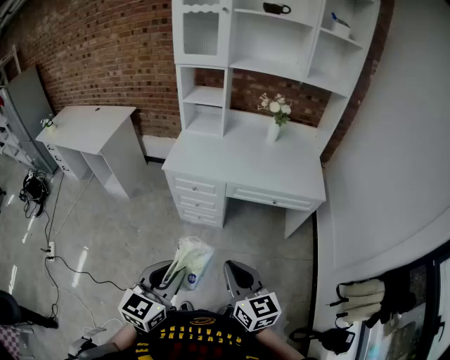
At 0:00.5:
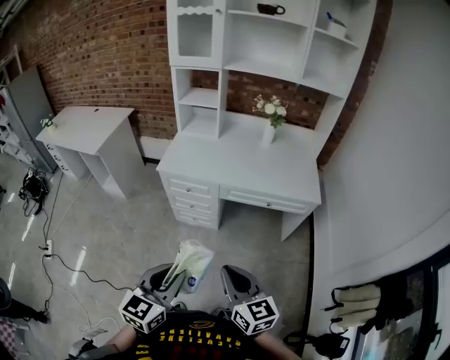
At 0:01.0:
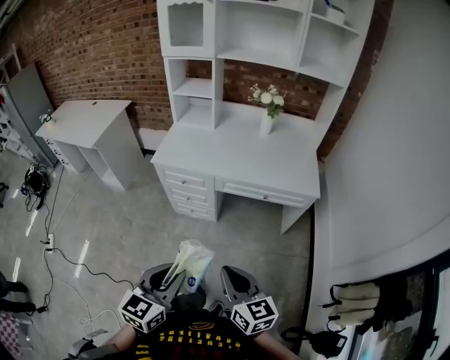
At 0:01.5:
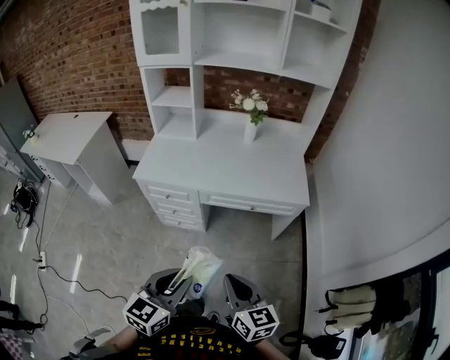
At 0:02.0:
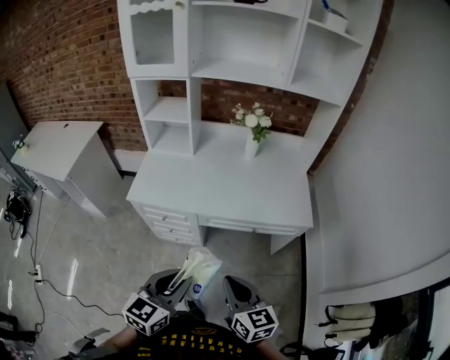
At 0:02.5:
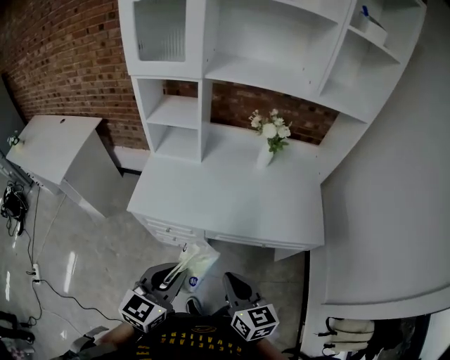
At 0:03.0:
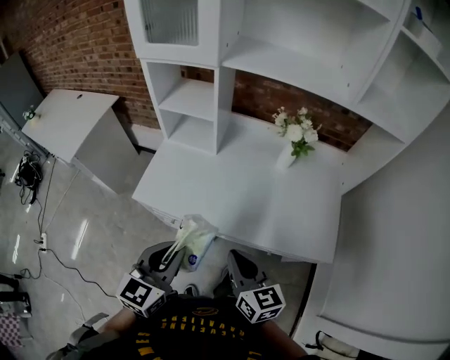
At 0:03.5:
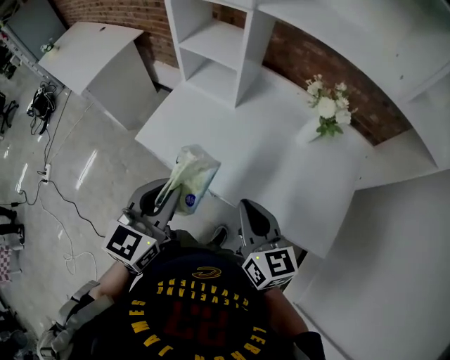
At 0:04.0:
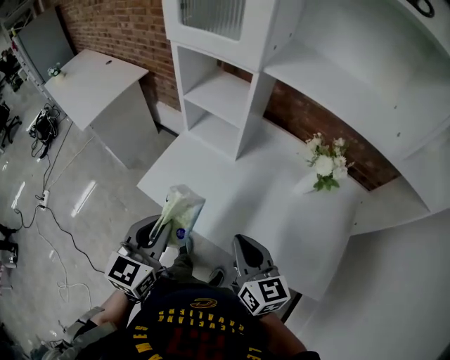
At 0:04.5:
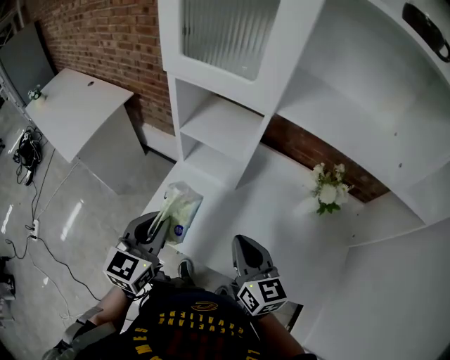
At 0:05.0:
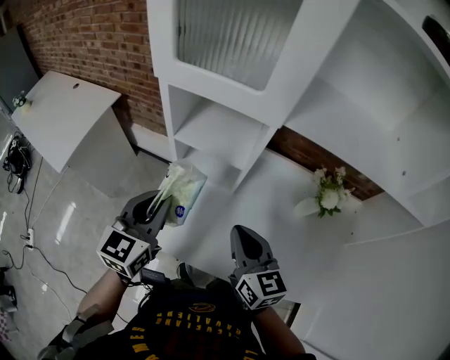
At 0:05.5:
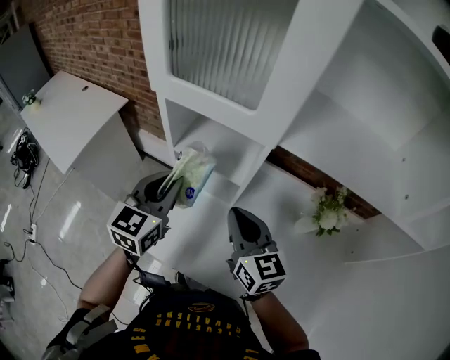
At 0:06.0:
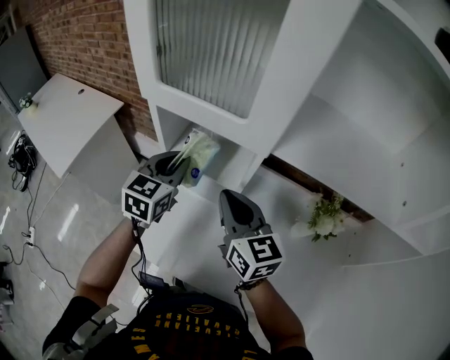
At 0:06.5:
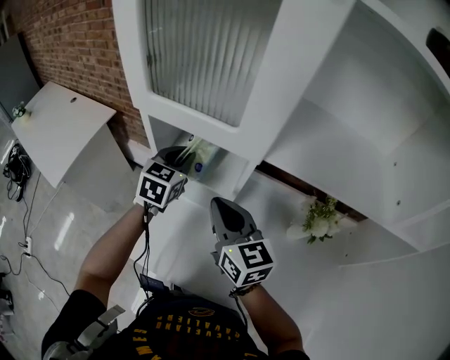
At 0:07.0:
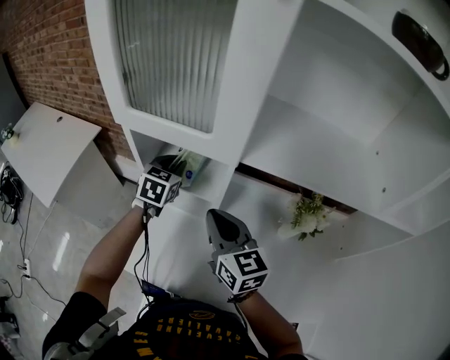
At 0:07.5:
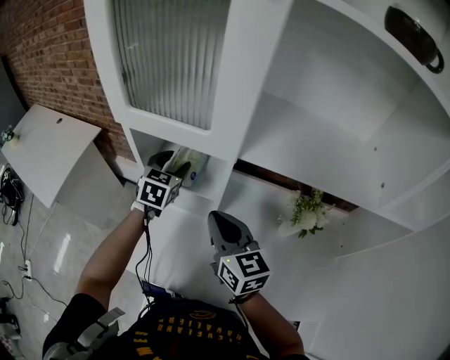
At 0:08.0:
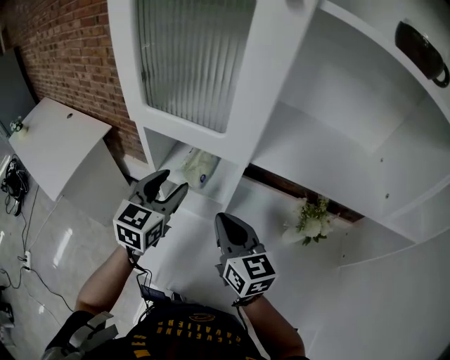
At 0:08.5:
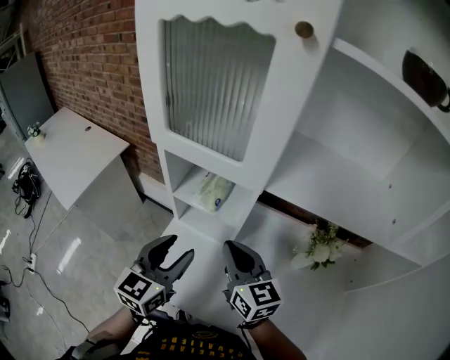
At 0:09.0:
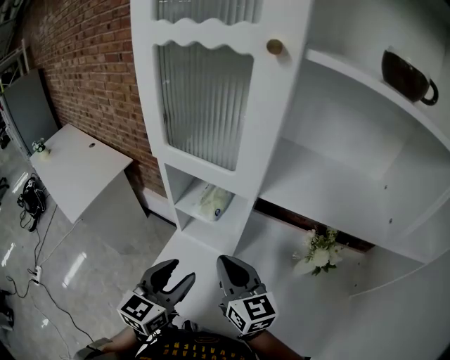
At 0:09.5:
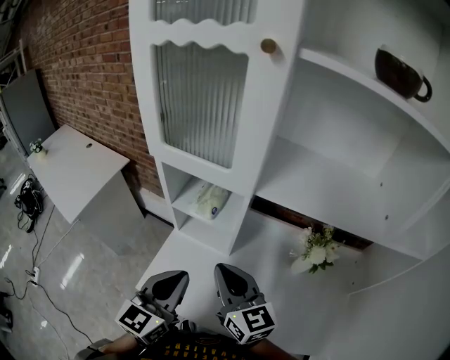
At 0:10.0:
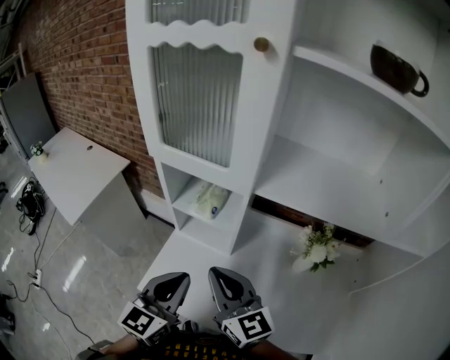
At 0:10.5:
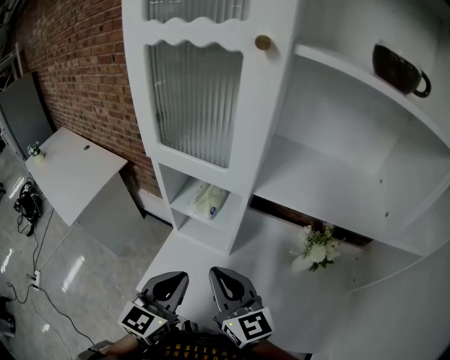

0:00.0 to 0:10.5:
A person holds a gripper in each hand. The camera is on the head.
0:00.0 to 0:02.0: The grippers both shift forward and to the right by roughly 25 cm.
0:02.0 to 0:04.0: The left gripper changes place by approximately 35 cm, and turns by about 30 degrees, while the right gripper ends up roughly 35 cm from where it was, and changes its angle by roughly 20 degrees.
0:04.0 to 0:06.5: The grippers both shift forward by approximately 35 cm.
0:06.5 to 0:08.5: The left gripper is displaced backward by approximately 20 cm, and opens.
0:08.5 to 0:10.5: Both grippers travel together backward, roughly 5 cm. The left gripper closes.

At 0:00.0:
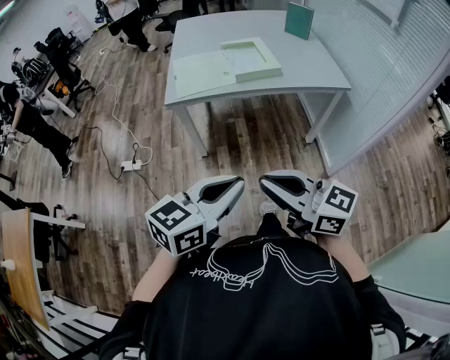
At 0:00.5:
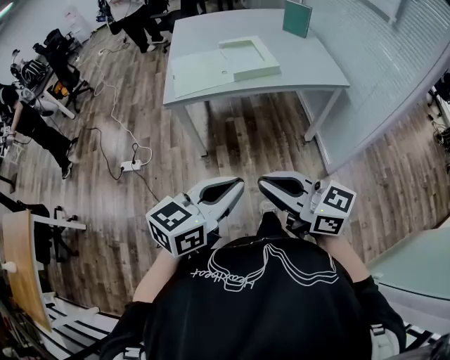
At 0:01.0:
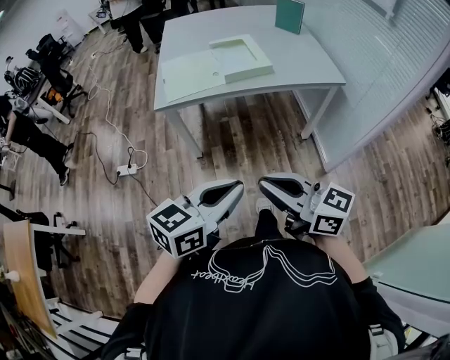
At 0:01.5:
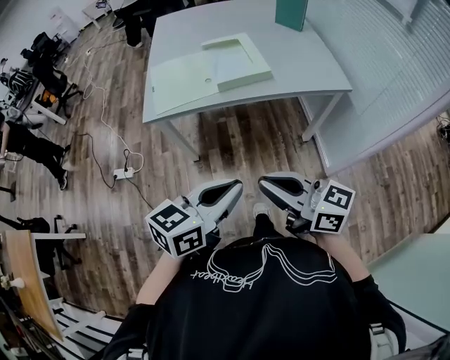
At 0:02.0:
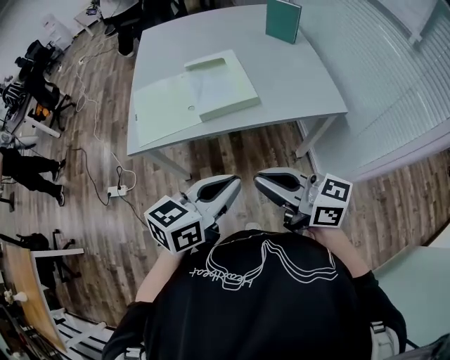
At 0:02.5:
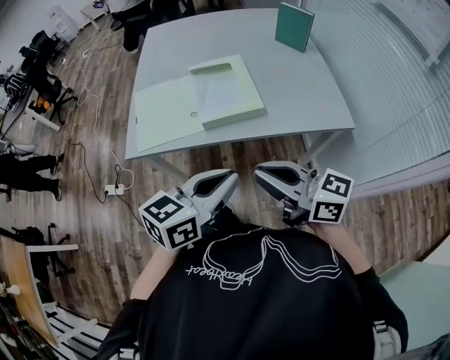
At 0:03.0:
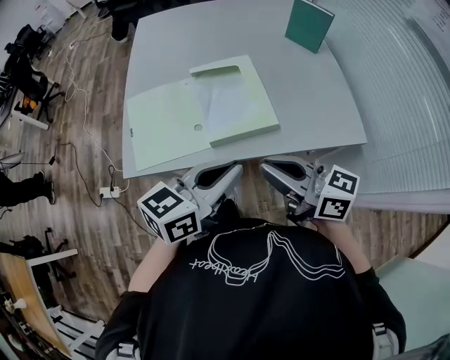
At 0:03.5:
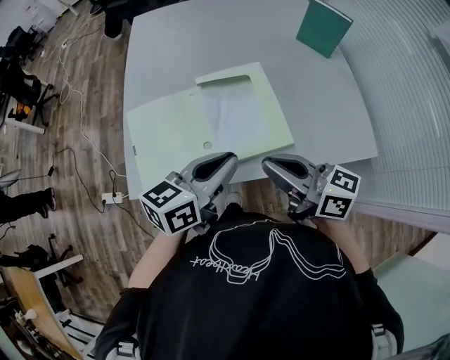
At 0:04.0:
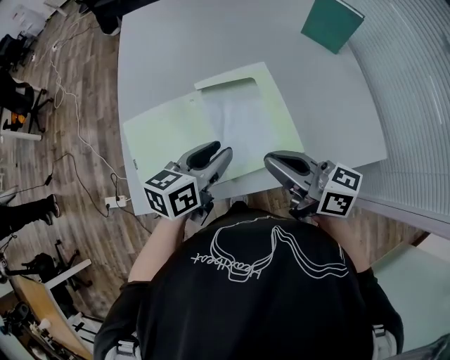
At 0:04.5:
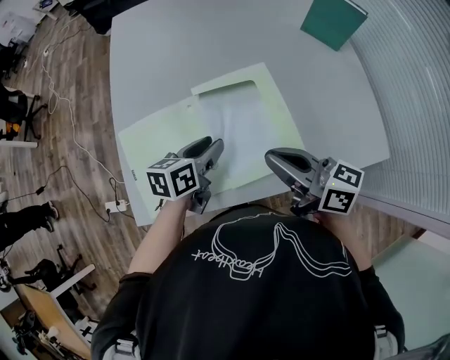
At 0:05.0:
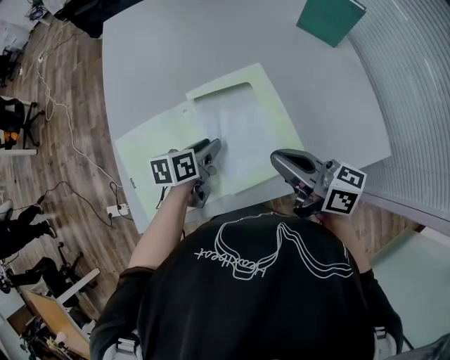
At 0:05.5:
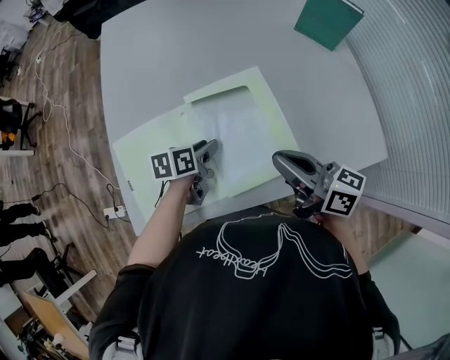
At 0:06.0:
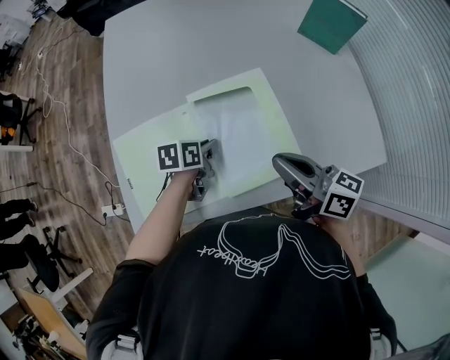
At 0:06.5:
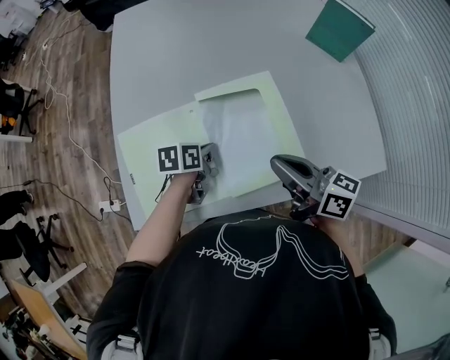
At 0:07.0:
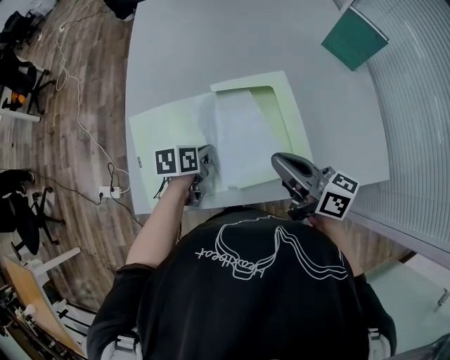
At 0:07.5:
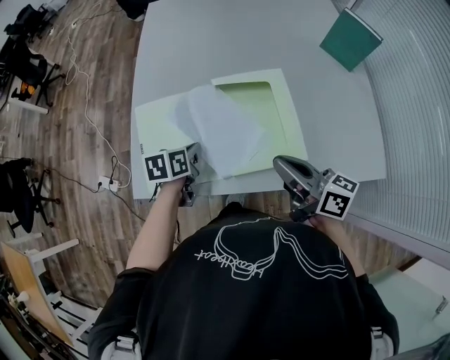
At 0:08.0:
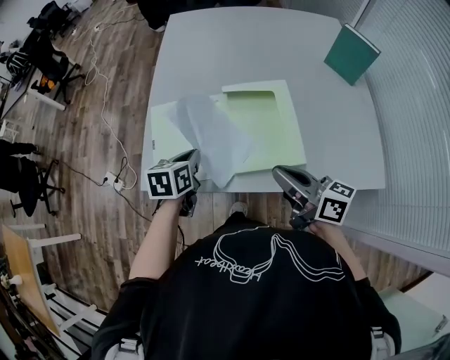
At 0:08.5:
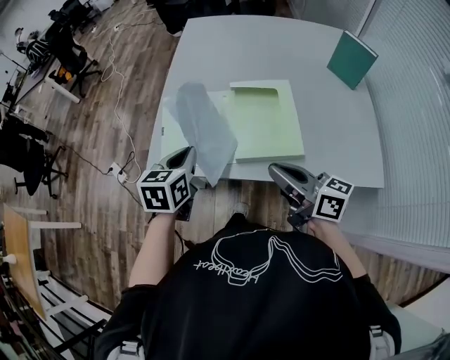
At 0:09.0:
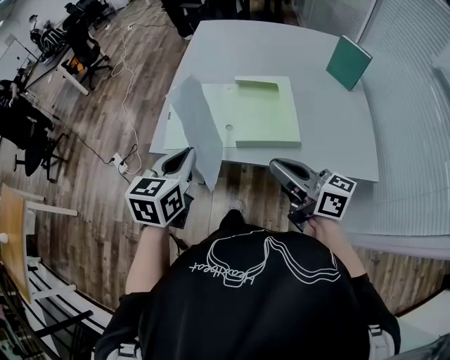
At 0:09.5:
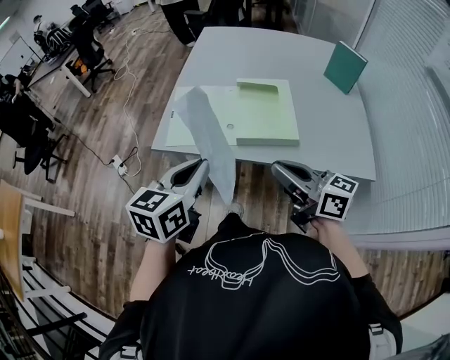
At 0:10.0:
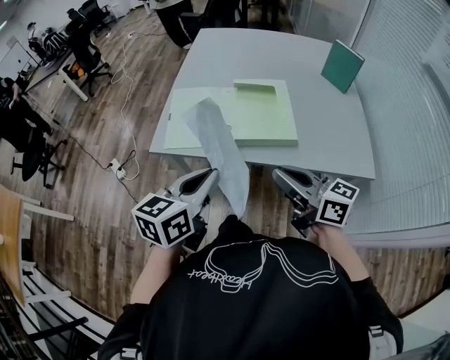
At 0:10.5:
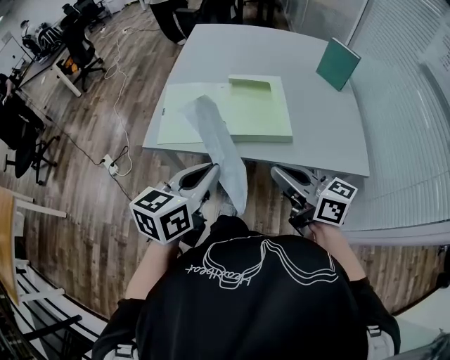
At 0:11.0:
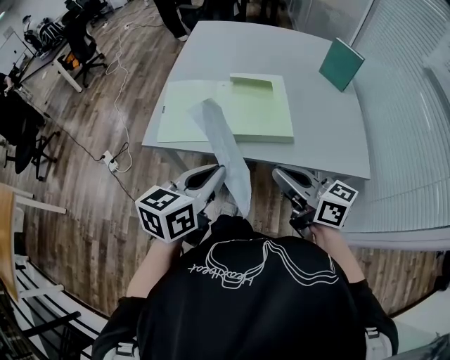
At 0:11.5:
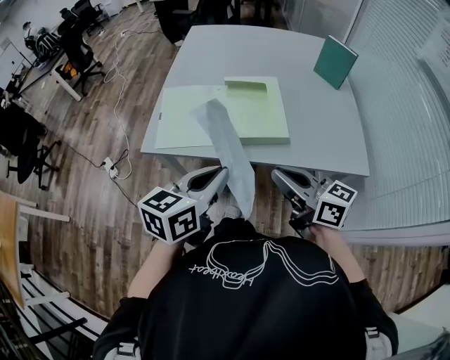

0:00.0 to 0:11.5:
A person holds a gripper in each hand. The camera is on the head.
0:00.0 to 0:02.0: Both grippers move forward and to the right, about 30 cm.
0:02.0 to 0:04.0: The grippers both shift forward by roughly 40 cm. The left gripper opens.
0:04.0 to 0:06.0: The left gripper shifts approximately 15 cm downward, and turns by approximately 30 degrees.
0:06.0 to 0:07.5: The right gripper goes roughly 5 cm backward. Meanwhile the left gripper goes approximately 10 cm backward, to the left and upward.
0:07.5 to 0:09.5: The left gripper goes some 30 cm backward and upward, and rotates roughly 40 degrees. Meanwhile the right gripper travels backward by about 15 cm, and turns by some 20 degrees.
0:09.5 to 0:11.5: The left gripper changes place by roughly 5 cm.

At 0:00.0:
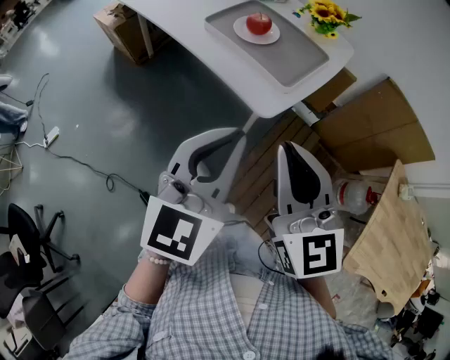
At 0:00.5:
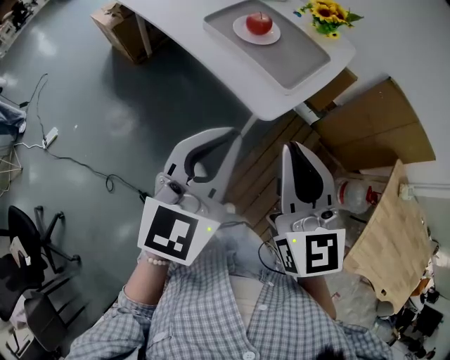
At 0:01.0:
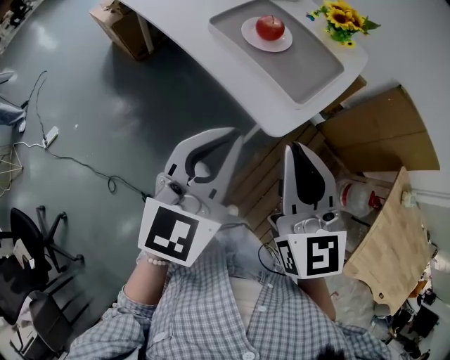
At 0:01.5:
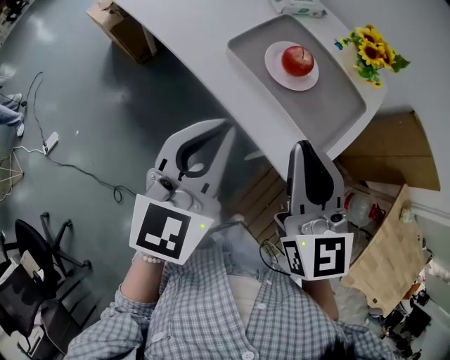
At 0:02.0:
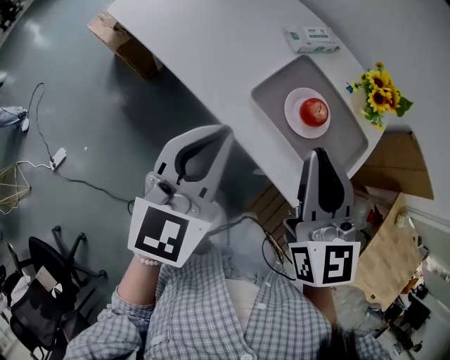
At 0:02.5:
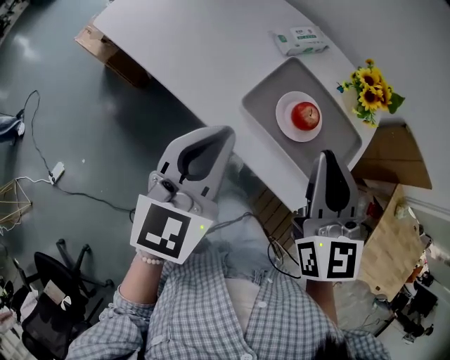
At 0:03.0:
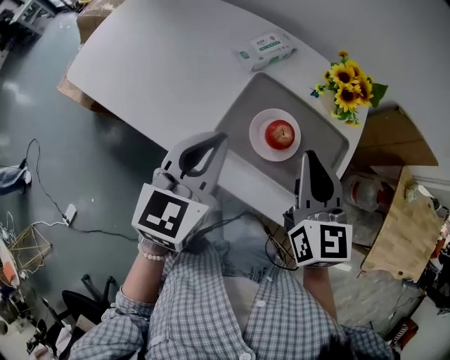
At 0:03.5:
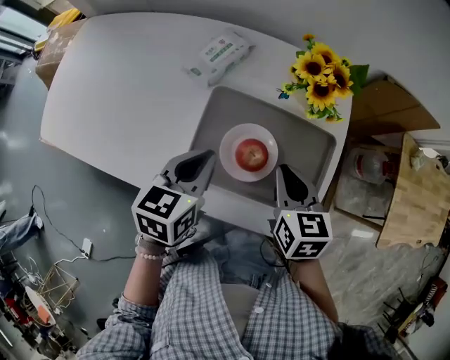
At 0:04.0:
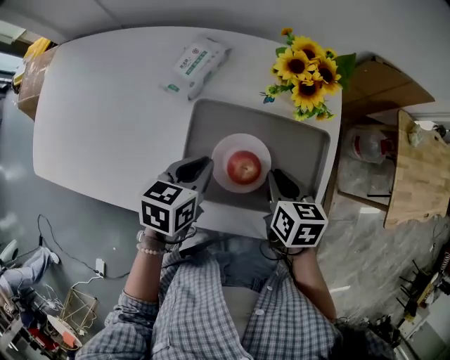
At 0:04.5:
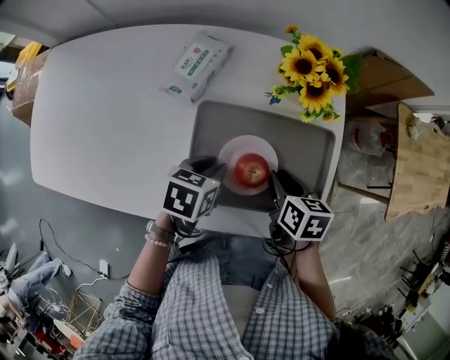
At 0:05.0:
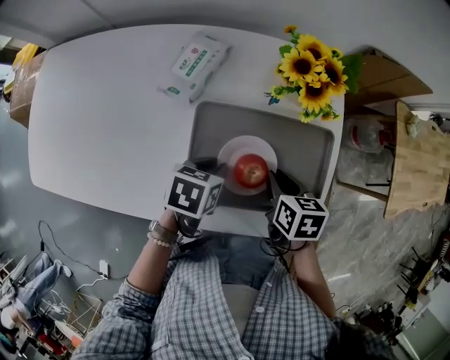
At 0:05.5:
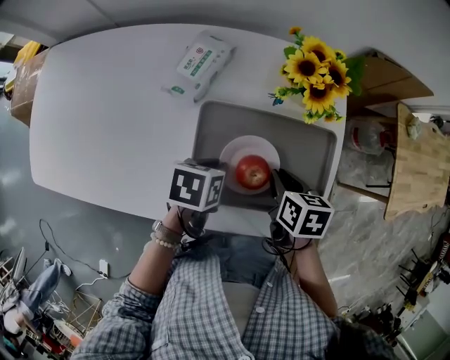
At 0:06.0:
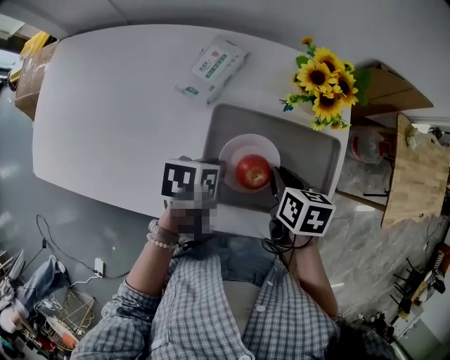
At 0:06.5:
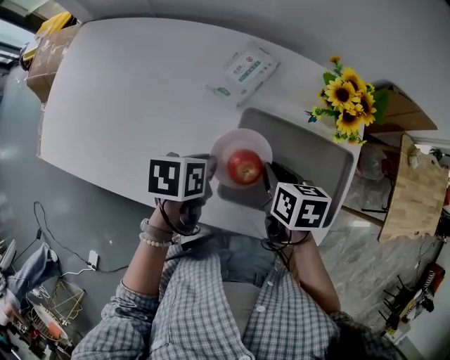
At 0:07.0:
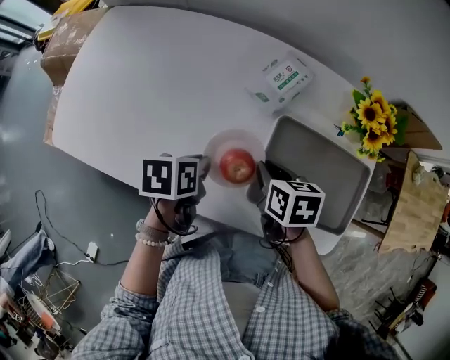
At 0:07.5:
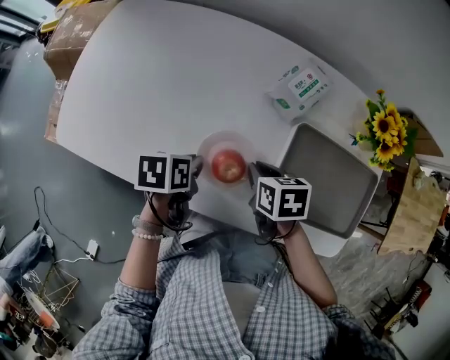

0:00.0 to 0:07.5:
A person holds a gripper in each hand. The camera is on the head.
0:00.0 to 0:02.0: Both grippers travel together forward and to the left, about 35 cm.
0:02.0 to 0:04.0: The right gripper travels downward by approximately 25 cm, and points its fingers approximately 40 degrees further downward. The left gripper ends up roughly 30 cm from where it was, and swivels roughly 50 degrees.
0:04.0 to 0:05.5: The left gripper travels downward by about 5 cm, and changes its angle by roughly 20 degrees.
0:05.5 to 0:07.5: Both grippers travel together to the left, approximately 30 cm. The left gripper rotates approximately 20 degrees, while the right gripper swivels approximately 20 degrees.
